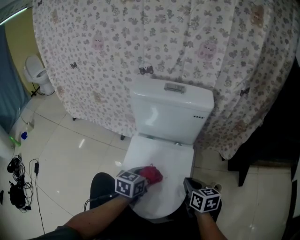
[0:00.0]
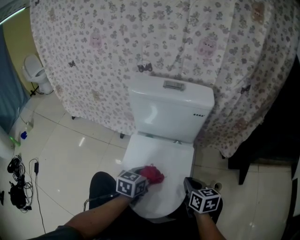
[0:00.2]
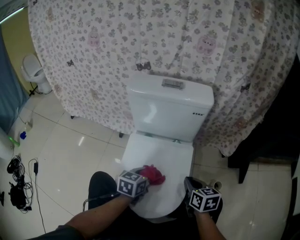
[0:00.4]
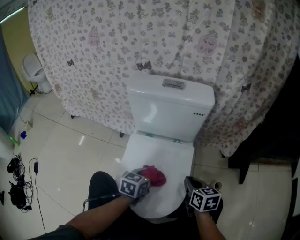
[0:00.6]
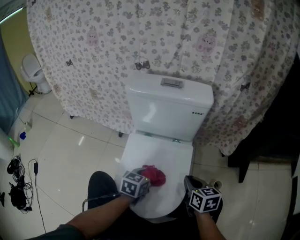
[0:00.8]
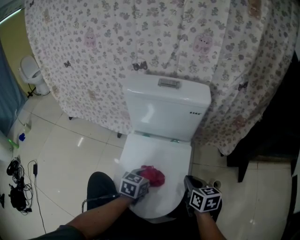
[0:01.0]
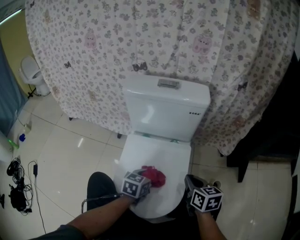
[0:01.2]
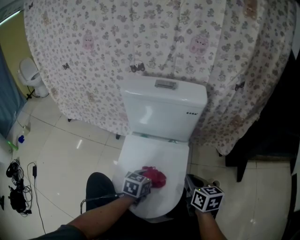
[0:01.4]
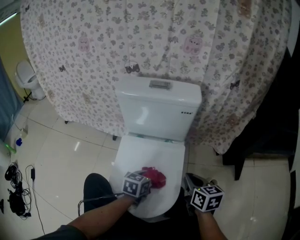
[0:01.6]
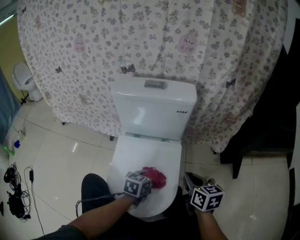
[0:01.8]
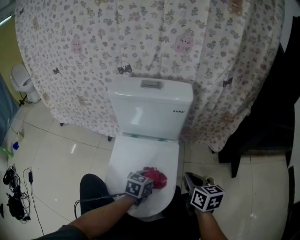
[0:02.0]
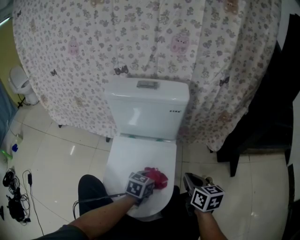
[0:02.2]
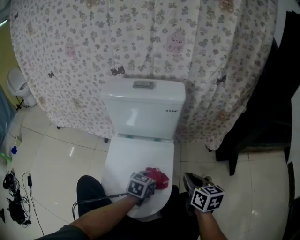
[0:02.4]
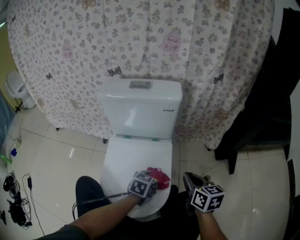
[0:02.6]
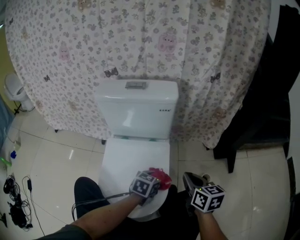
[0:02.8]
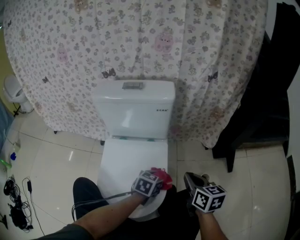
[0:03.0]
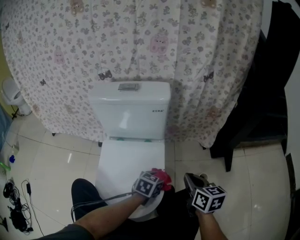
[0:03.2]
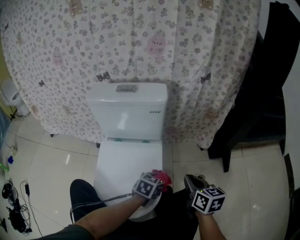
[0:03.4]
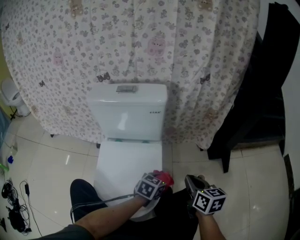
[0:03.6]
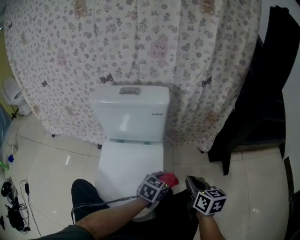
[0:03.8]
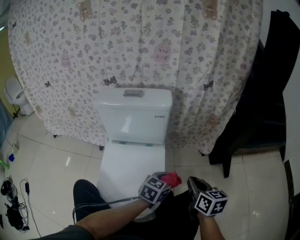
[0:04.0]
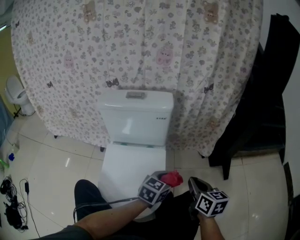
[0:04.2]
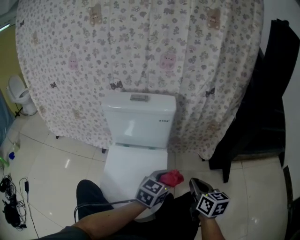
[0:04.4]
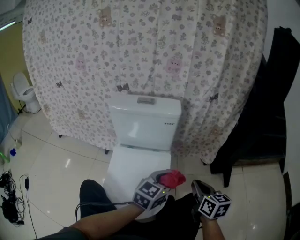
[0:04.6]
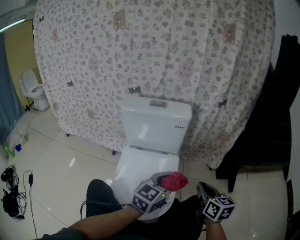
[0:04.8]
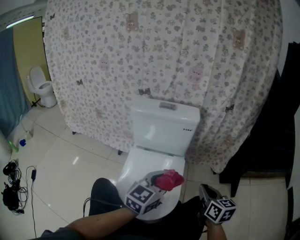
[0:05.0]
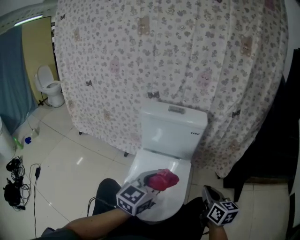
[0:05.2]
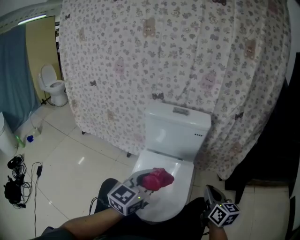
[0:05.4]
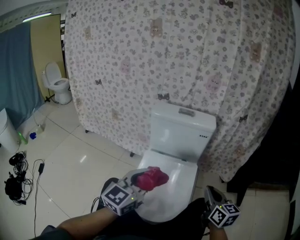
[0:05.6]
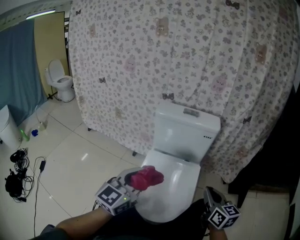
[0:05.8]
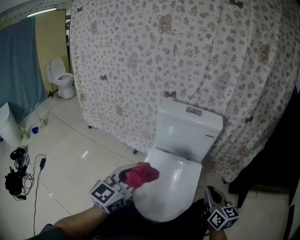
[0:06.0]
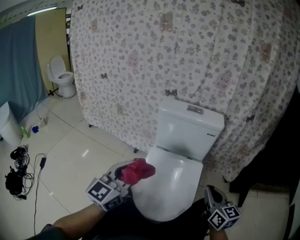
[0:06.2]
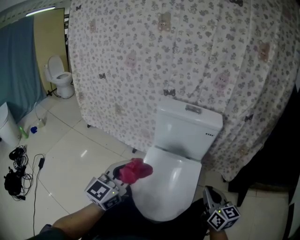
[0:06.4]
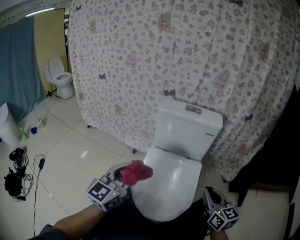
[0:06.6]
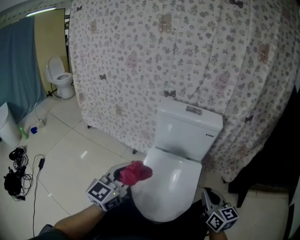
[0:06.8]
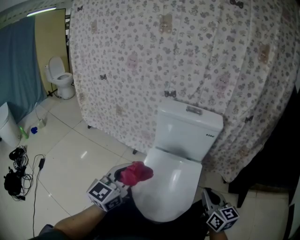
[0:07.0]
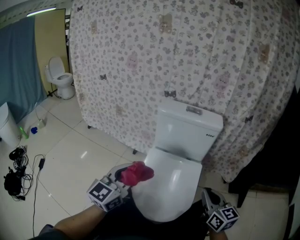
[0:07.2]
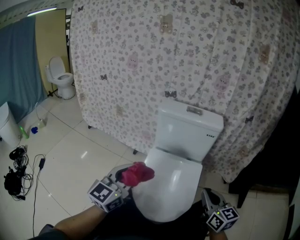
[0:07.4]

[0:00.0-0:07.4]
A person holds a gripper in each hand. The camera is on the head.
0:00.0 to 0:01.4: The left gripper shifts approximately 5 cm downward.
0:01.4 to 0:03.0: The right gripper heads to the right, covering roughly 10 cm, while the left gripper moves to the right, some 15 cm.
0:03.0 to 0:04.4: The right gripper moves about 5 cm, while the left gripper shifts approximately 15 cm upward, and turns by roughly 20 degrees.
0:04.4 to 0:06.0: The right gripper goes about 10 cm to the left and upward, and changes its angle by roughly 20 degrees. The left gripper is displaced to the left and upward by approximately 35 cm, and rotates some 30 degrees.
0:06.0 to 0:07.4: The grippers move only a little.

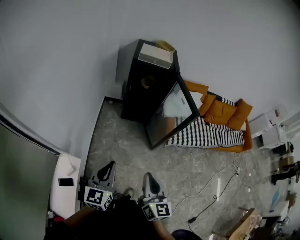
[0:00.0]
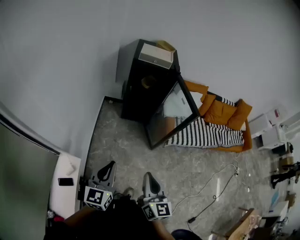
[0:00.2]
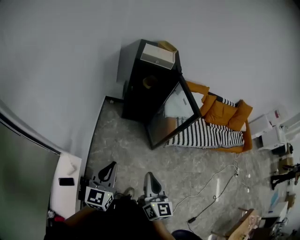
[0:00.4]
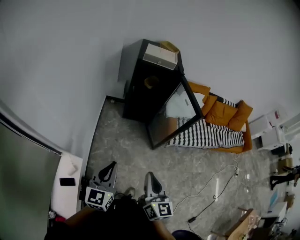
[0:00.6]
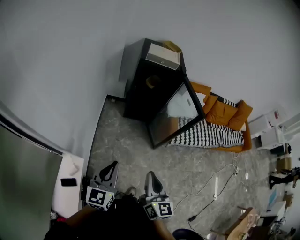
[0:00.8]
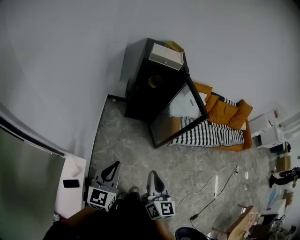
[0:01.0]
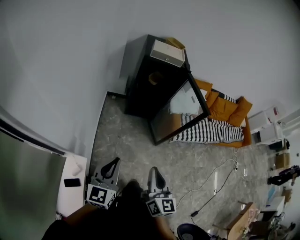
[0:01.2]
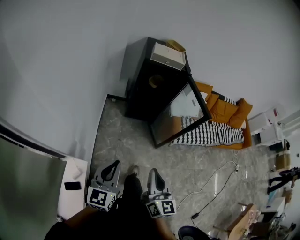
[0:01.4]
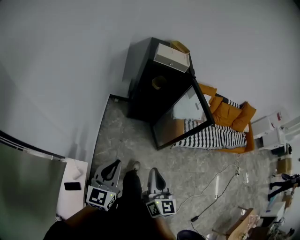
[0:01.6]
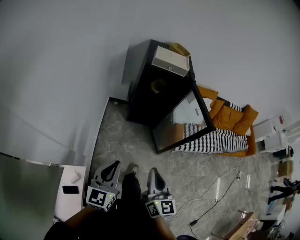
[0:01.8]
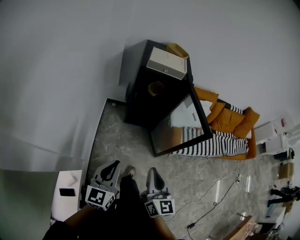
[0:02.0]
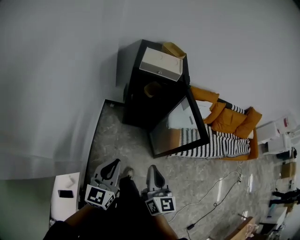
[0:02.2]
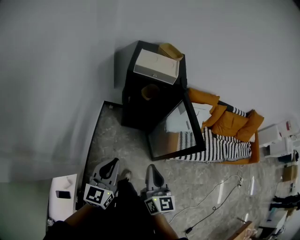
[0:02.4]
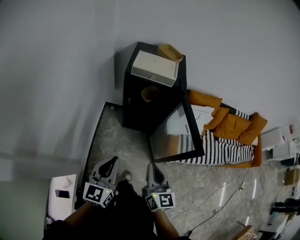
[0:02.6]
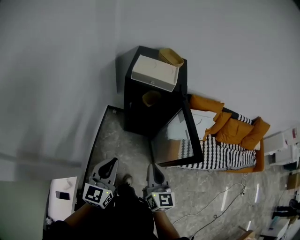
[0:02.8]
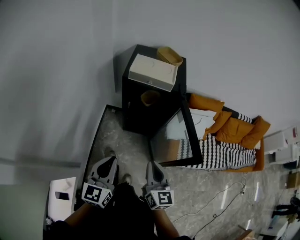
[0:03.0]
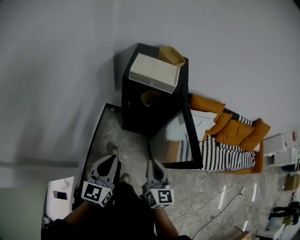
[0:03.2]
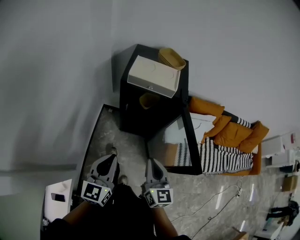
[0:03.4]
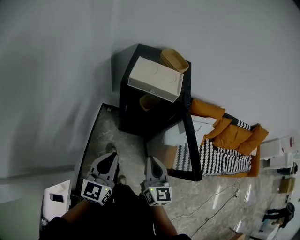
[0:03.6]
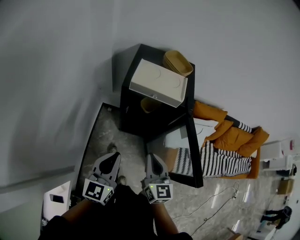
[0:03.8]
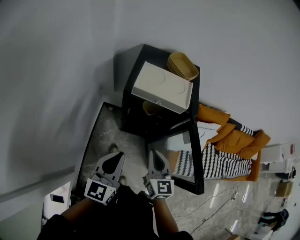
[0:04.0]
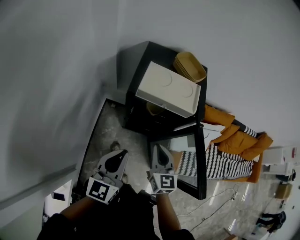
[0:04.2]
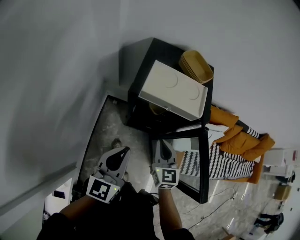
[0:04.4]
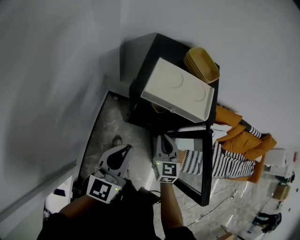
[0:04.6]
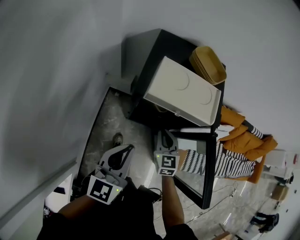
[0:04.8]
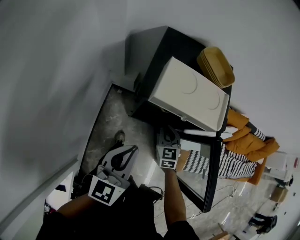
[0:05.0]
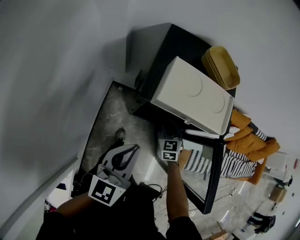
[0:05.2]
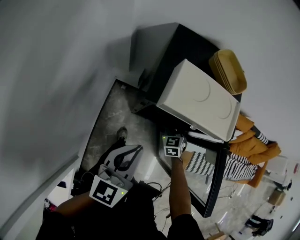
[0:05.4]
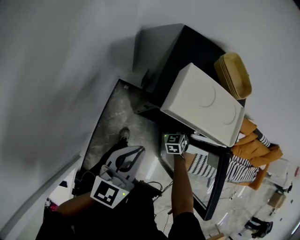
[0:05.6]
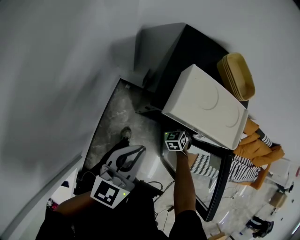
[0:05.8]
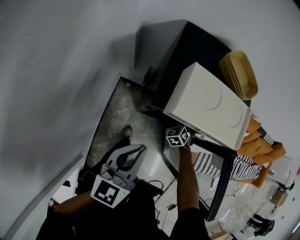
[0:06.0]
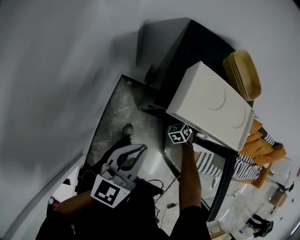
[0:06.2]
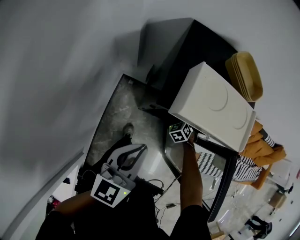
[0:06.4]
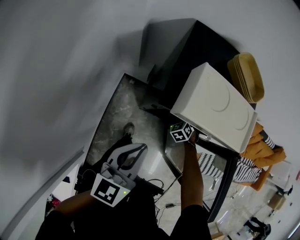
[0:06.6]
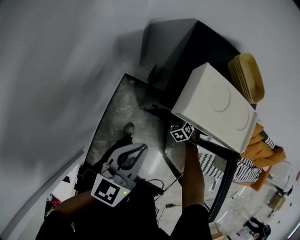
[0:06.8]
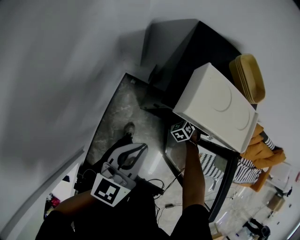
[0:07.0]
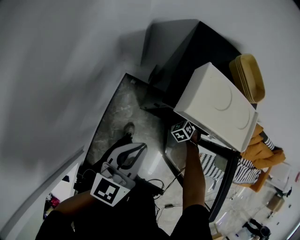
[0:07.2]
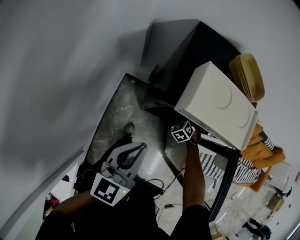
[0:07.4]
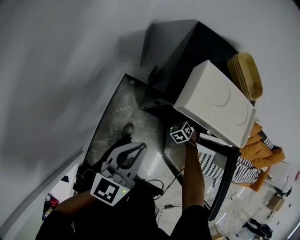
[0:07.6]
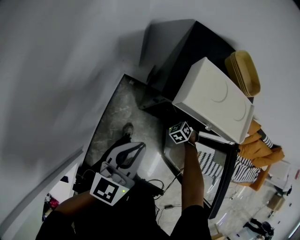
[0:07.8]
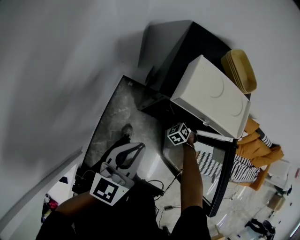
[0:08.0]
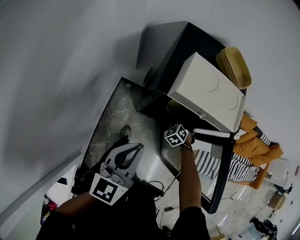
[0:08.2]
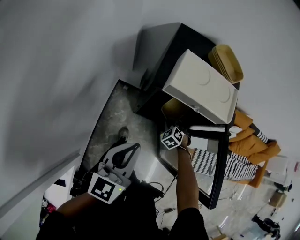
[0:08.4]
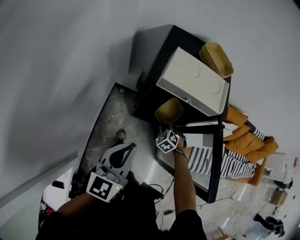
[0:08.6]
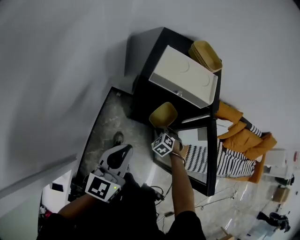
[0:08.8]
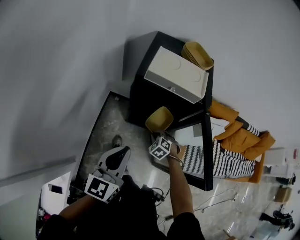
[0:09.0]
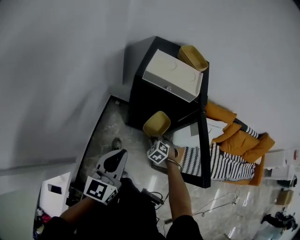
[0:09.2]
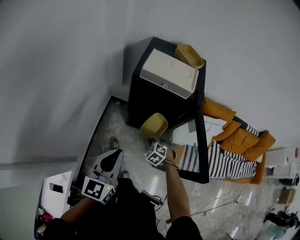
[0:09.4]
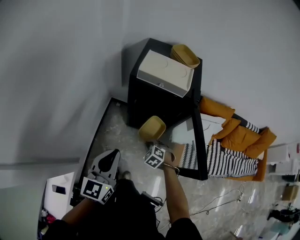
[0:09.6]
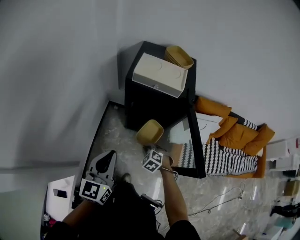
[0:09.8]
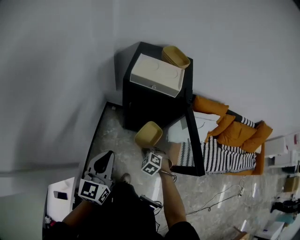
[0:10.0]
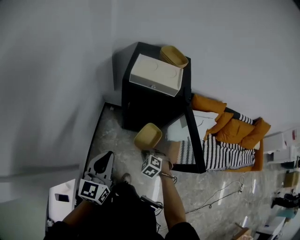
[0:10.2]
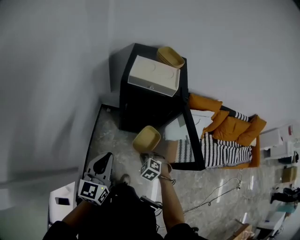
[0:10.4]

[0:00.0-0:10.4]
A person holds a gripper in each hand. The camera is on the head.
0:00.0 to 0:01.4: The grippers both shift to the left by roughly 10 cm.
0:01.4 to 0:03.0: Both grippers move forward and to the right, some 35 cm.
0:03.0 to 0:04.4: The two grippers go some 25 cm forward.
0:04.4 to 0:06.0: The left gripper travels forward and downward by roughly 10 cm, while the right gripper shifts some 35 cm downward and forward, and points its fingers about 30 degrees further downward.
0:06.0 to 0:07.4: There are only small adjustments of the grippers.
0:07.4 to 0:09.0: The grippers both shift backward and upward by approximately 20 cm.
0:09.0 to 0:10.4: The right gripper shifts some 20 cm backward and upward, while the left gripper moves backward, roughly 5 cm.

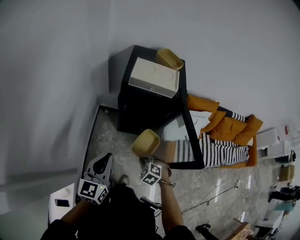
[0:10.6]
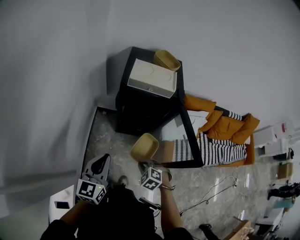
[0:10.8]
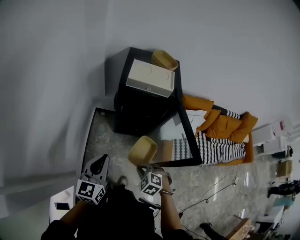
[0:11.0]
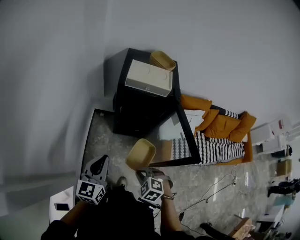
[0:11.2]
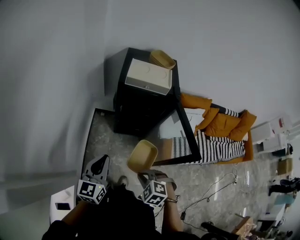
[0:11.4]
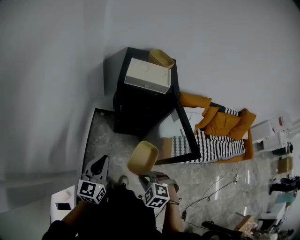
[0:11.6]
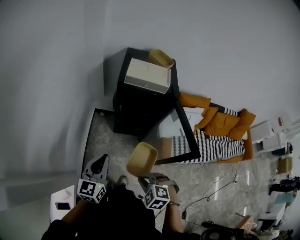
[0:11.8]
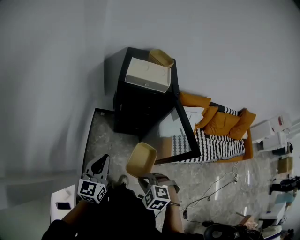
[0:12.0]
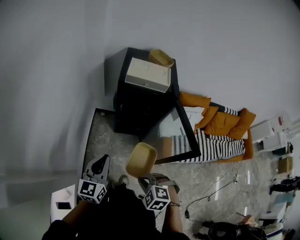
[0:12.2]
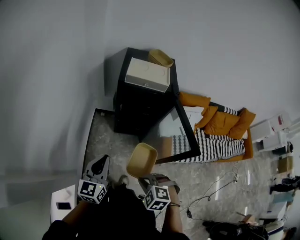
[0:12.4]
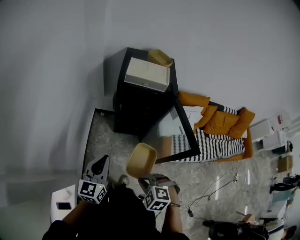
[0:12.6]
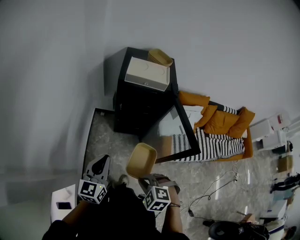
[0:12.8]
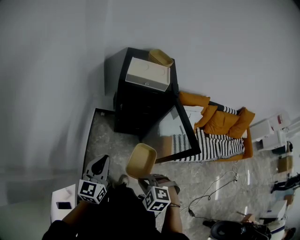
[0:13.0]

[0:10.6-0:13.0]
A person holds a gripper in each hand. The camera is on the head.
0:10.6 to 0:11.8: The left gripper shifts by approximately 5 cm, while the right gripper moves backward and upward, about 20 cm.
0:11.8 to 0:13.0: The grippers make only small movements.

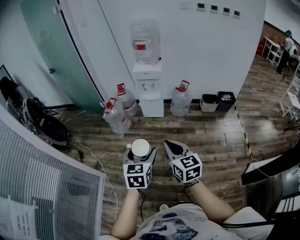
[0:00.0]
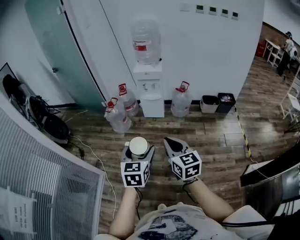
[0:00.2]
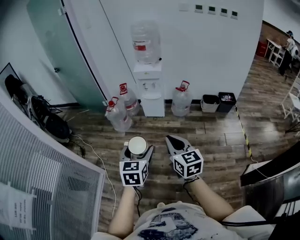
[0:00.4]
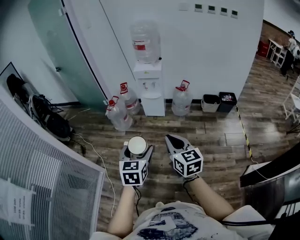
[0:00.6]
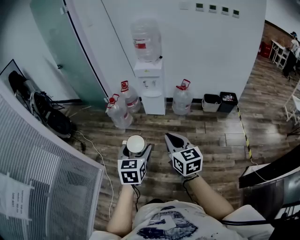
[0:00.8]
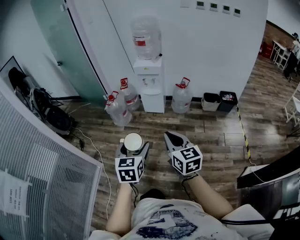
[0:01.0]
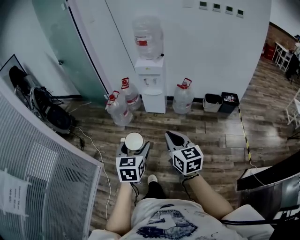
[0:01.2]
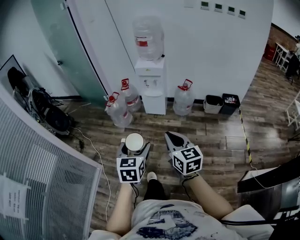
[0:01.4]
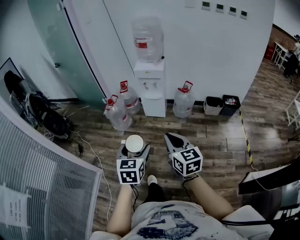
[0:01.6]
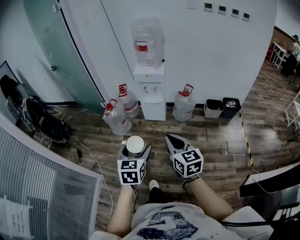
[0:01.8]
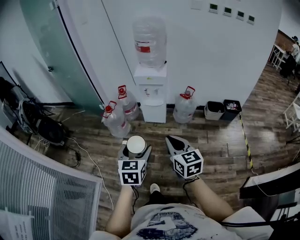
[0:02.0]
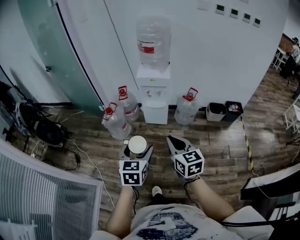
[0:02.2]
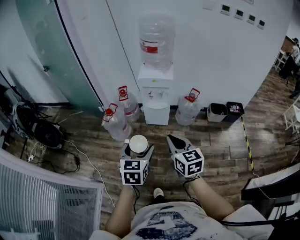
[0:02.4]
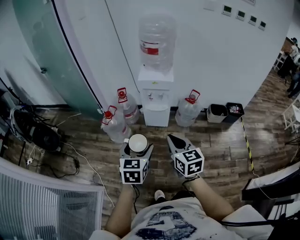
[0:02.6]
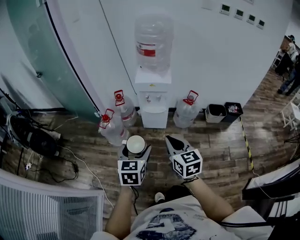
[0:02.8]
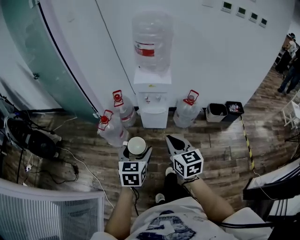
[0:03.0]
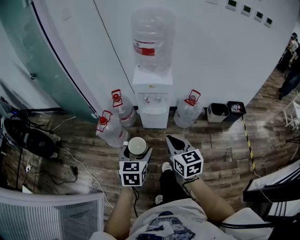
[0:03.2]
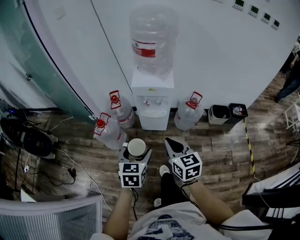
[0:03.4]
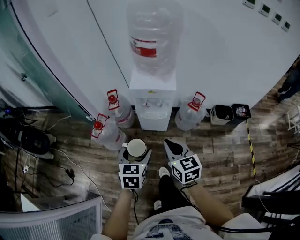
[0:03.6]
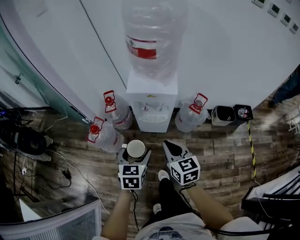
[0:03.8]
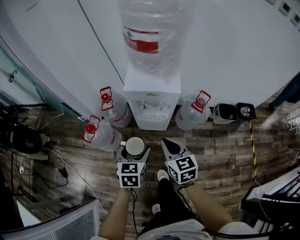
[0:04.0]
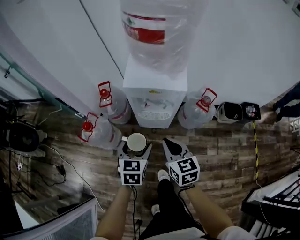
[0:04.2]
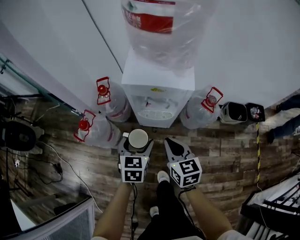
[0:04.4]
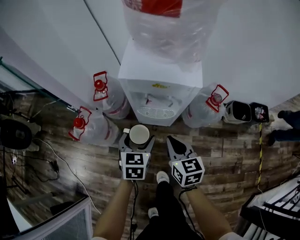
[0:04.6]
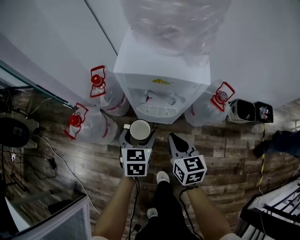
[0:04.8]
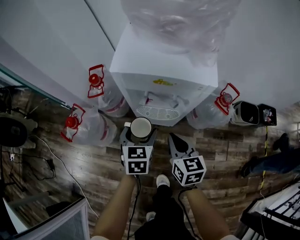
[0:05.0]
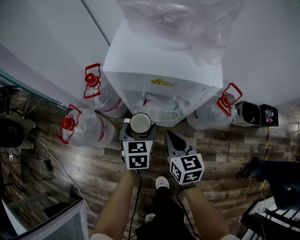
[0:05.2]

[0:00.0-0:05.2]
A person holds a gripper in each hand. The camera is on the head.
0:00.0 to 0:01.8: The right gripper shifts about 10 cm forward and to the right. The left gripper moves forward, approximately 10 cm.
0:01.8 to 0:03.4: Both grippers travel together forward, roughly 35 cm.
0:03.4 to 0:05.2: Both grippers travel together downward and forward, some 50 cm.
